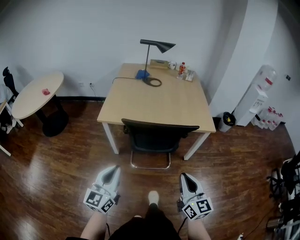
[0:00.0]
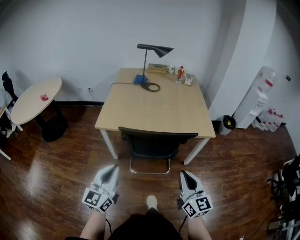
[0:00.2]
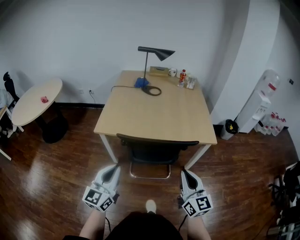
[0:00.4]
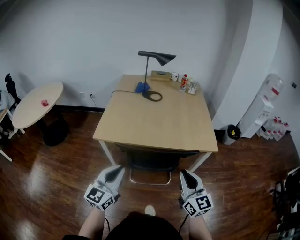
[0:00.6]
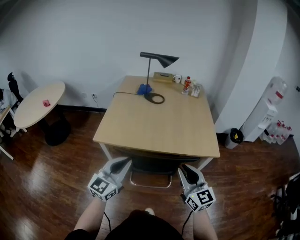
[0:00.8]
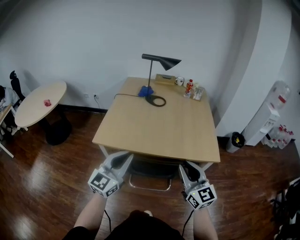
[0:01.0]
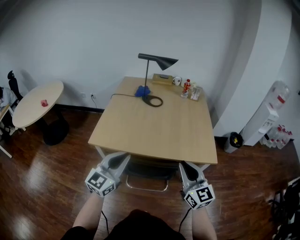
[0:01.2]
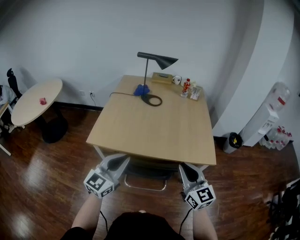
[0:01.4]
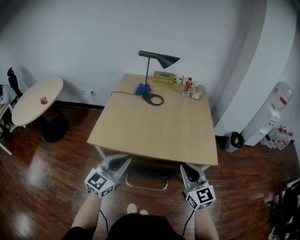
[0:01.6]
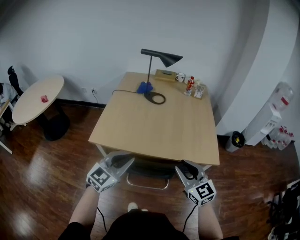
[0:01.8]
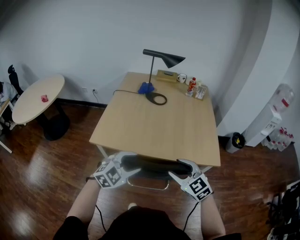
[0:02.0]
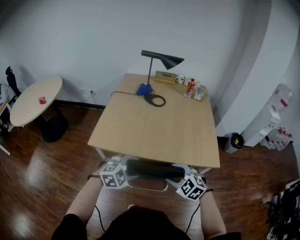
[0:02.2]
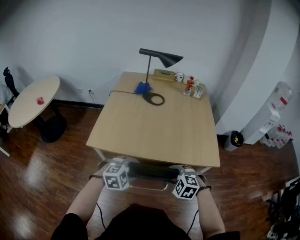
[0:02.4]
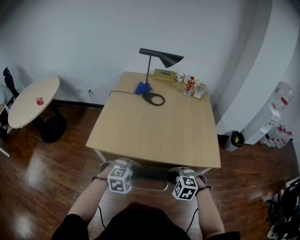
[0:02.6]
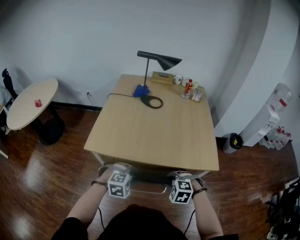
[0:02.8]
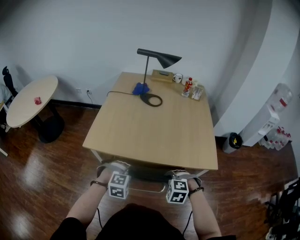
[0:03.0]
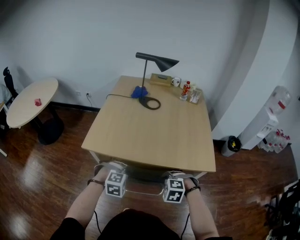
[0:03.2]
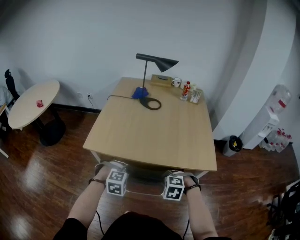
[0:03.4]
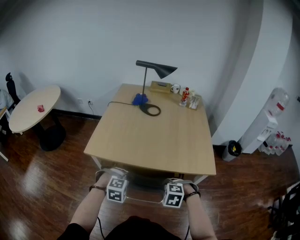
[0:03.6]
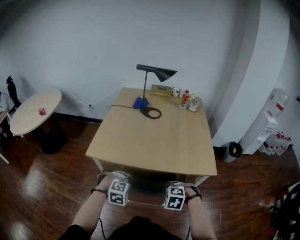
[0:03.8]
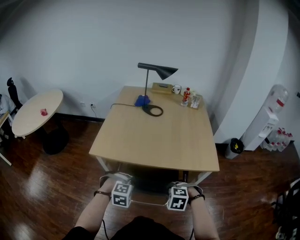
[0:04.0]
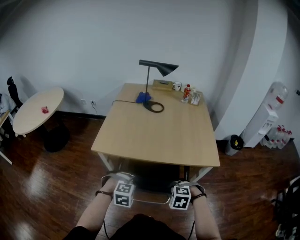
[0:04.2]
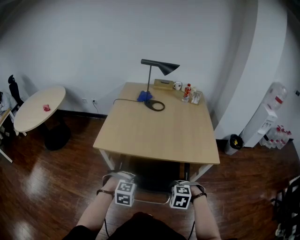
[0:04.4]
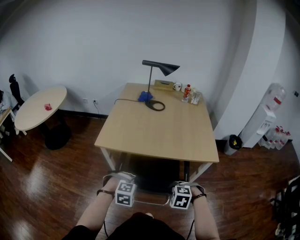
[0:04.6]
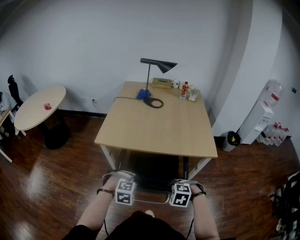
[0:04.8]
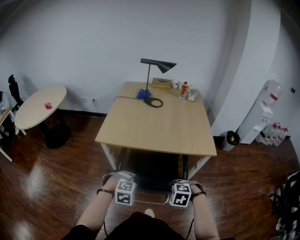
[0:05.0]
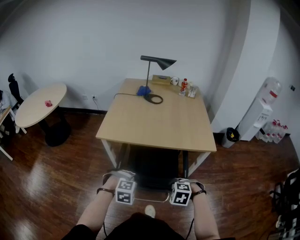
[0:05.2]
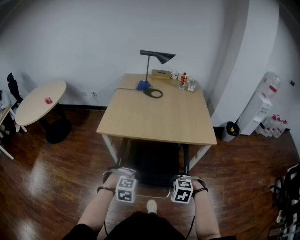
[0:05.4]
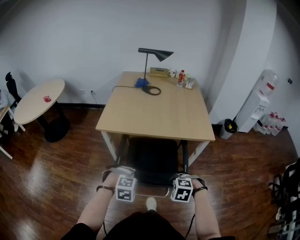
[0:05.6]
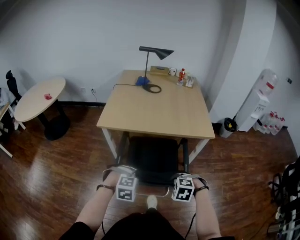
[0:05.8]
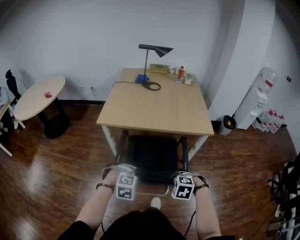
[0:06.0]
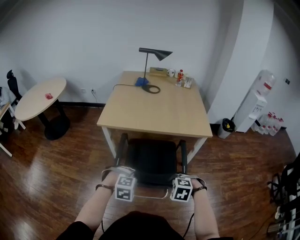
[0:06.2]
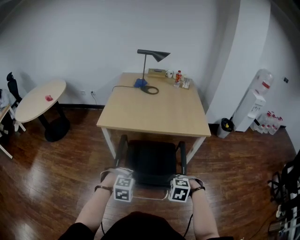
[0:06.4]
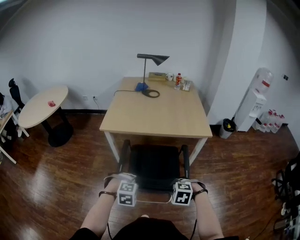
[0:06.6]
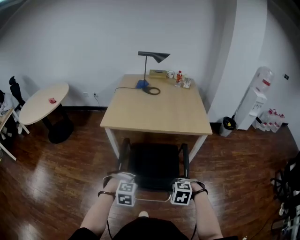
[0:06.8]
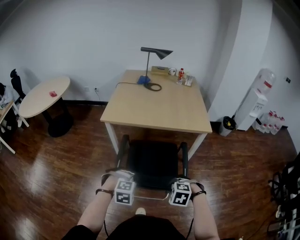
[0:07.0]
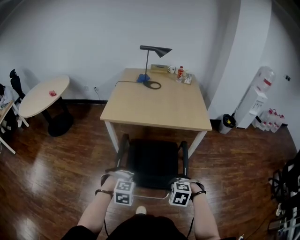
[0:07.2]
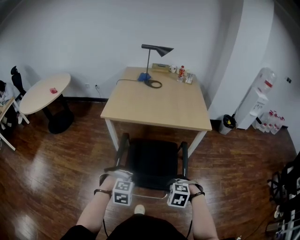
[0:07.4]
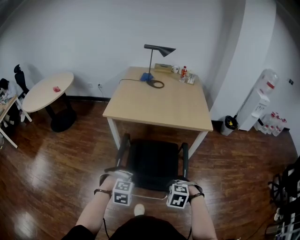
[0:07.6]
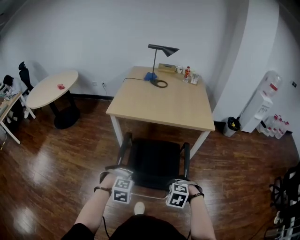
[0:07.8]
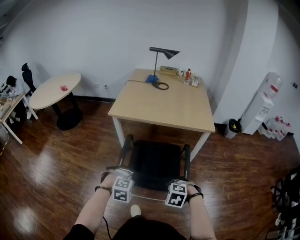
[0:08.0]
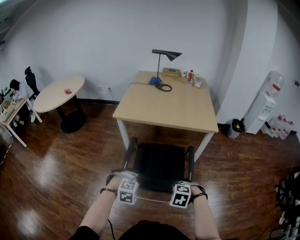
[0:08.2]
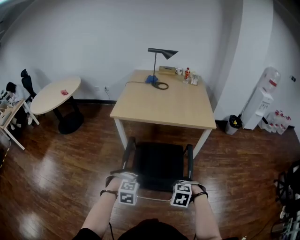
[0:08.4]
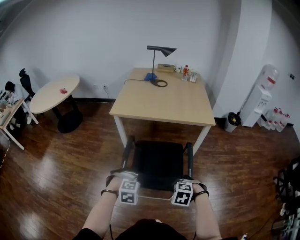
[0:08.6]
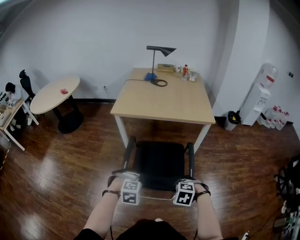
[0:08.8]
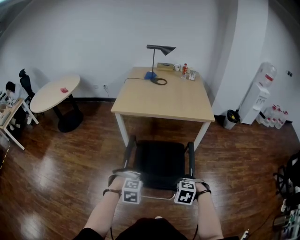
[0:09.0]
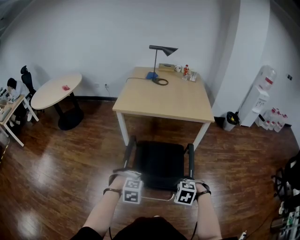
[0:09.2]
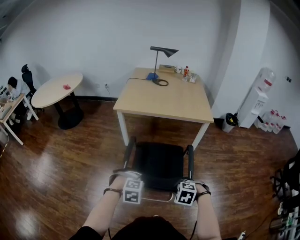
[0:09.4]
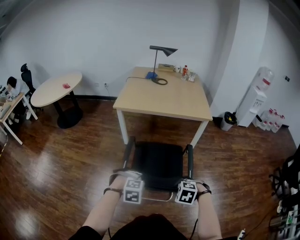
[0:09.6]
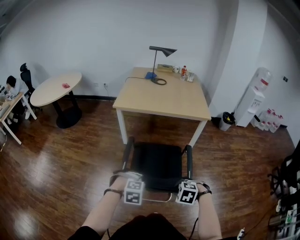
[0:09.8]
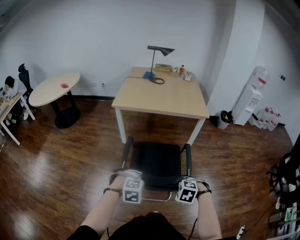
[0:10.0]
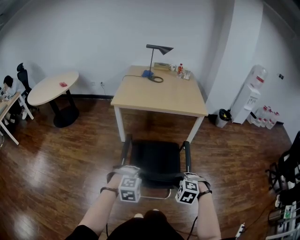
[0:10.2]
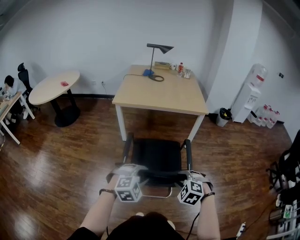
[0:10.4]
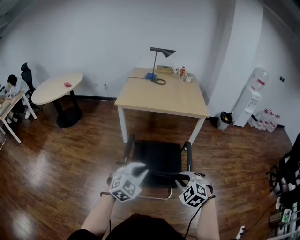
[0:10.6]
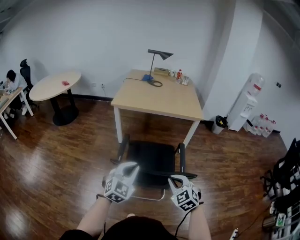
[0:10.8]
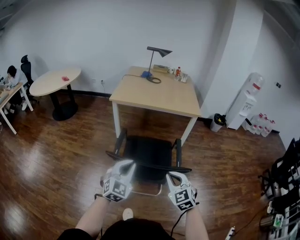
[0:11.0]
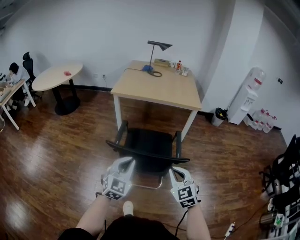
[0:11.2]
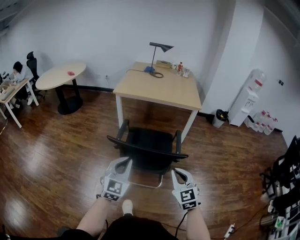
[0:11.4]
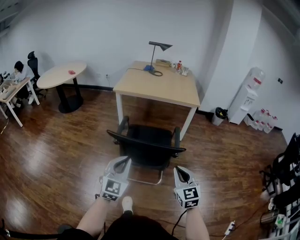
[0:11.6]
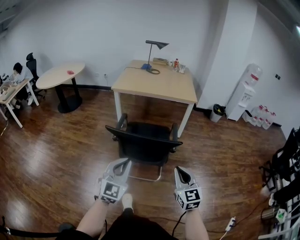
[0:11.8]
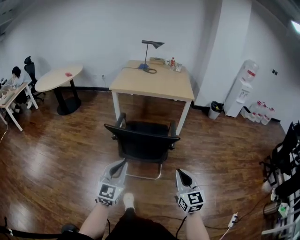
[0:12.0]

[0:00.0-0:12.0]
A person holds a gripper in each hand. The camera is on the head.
0:00.0 to 0:01.6: The left gripper travels forward and to the right by roughly 30 cm, while the right gripper goes roughly 25 cm forward.
0:01.6 to 0:03.0: The two grippers go roughly 20 cm downward. The right gripper angles its fingers downward, by approximately 60 degrees, and opens, then closes once more. Meanwhile the left gripper points its fingers approximately 60 degrees further downward, and opens, then closes again.
0:03.0 to 0:04.4: Both grippers move backward, about 10 cm.
0:04.4 to 0:06.0: Both grippers move backward, about 15 cm.
0:06.0 to 0:07.6: The left gripper moves about 10 cm. The right gripper changes place by roughly 10 cm.
0:07.6 to 0:09.0: The left gripper ends up approximately 10 cm from where it was. Meanwhile the right gripper moves approximately 10 cm.
0:09.0 to 0:10.4: The right gripper shifts by about 10 cm, and turns by some 20 degrees. Meanwhile the left gripper moves roughly 10 cm, and changes its angle by about 20 degrees.
0:10.4 to 0:12.0: The right gripper shifts about 25 cm backward, to the right and upward, tilts its fingers some 50 degrees upward, and closes its fingers. The left gripper is displaced backward by approximately 20 cm, points its fingers about 40 degrees further upward, and closes its fingers.

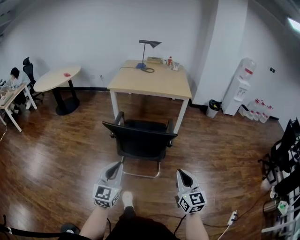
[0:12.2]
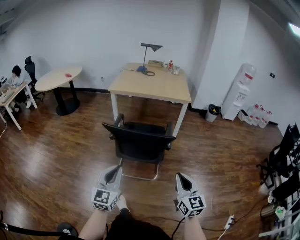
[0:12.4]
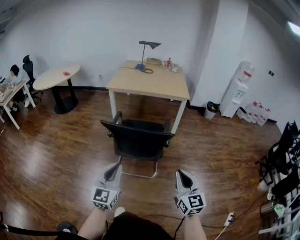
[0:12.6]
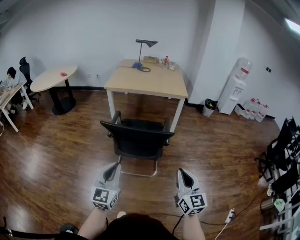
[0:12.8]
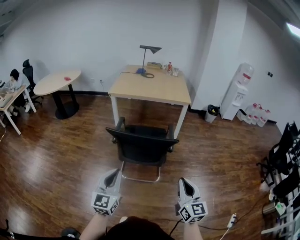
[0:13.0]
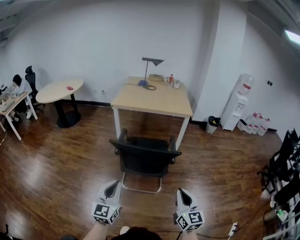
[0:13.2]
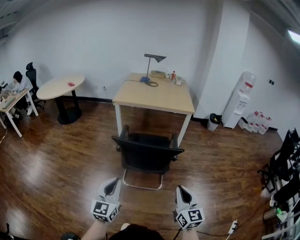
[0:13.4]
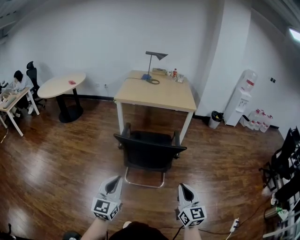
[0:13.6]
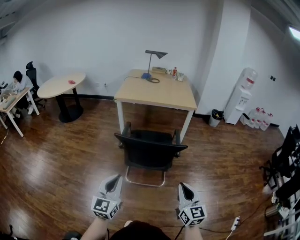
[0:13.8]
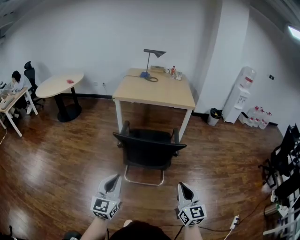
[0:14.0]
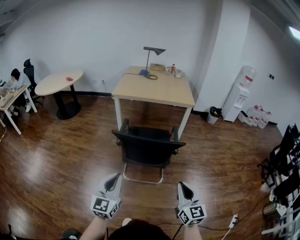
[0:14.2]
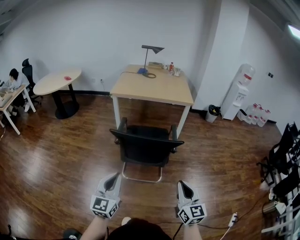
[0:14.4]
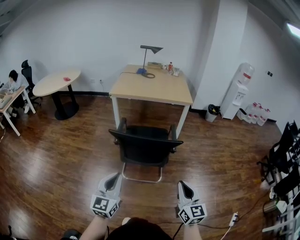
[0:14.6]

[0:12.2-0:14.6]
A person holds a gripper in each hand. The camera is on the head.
0:12.2 to 0:13.4: Both grippers move to the left, about 5 cm.
0:13.4 to 0:14.6: The grippers move only a little.

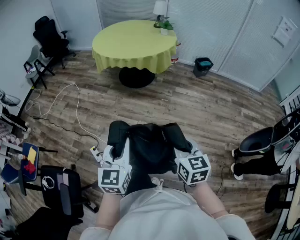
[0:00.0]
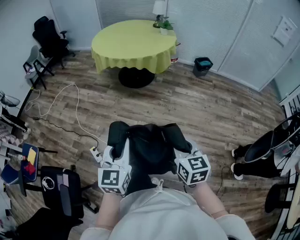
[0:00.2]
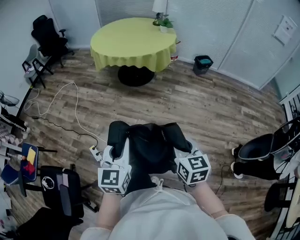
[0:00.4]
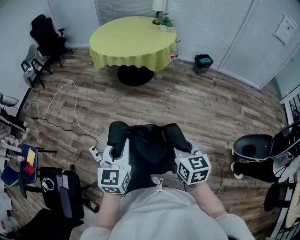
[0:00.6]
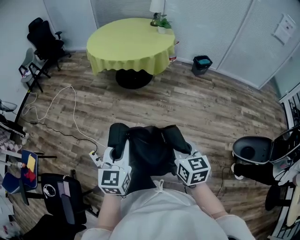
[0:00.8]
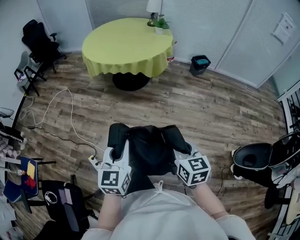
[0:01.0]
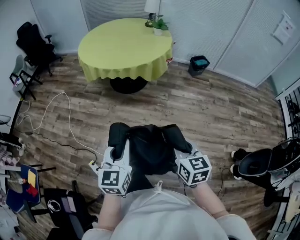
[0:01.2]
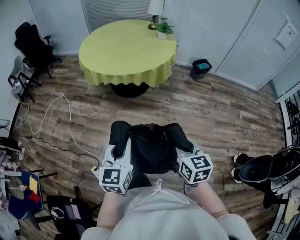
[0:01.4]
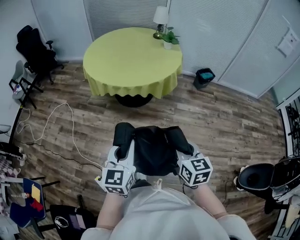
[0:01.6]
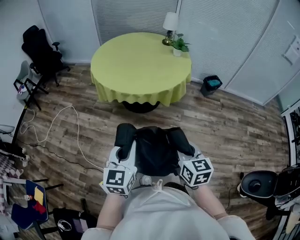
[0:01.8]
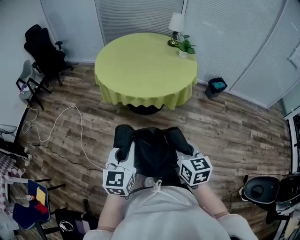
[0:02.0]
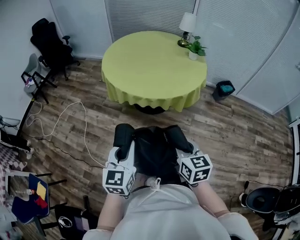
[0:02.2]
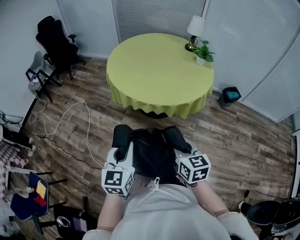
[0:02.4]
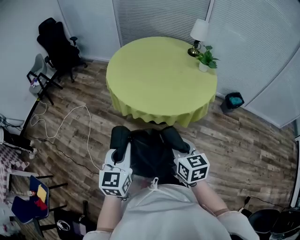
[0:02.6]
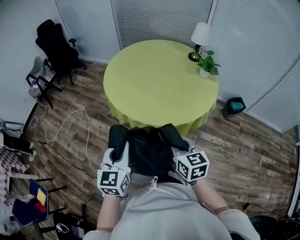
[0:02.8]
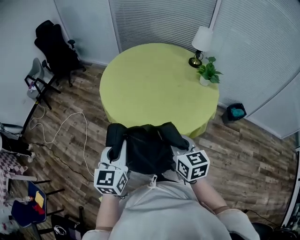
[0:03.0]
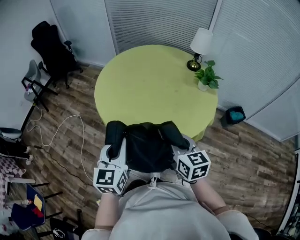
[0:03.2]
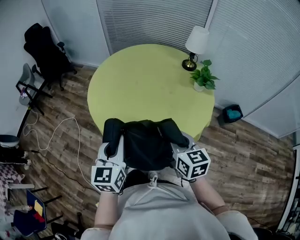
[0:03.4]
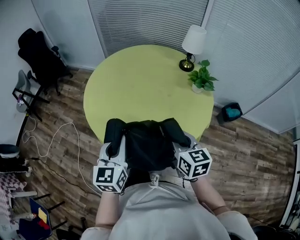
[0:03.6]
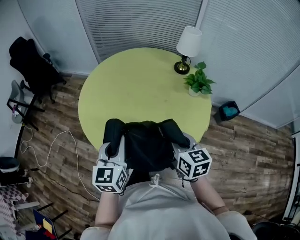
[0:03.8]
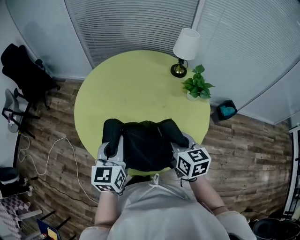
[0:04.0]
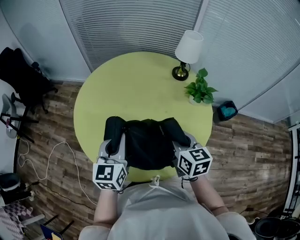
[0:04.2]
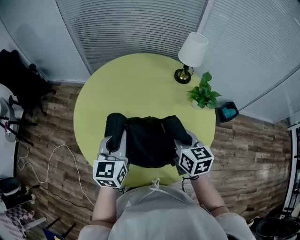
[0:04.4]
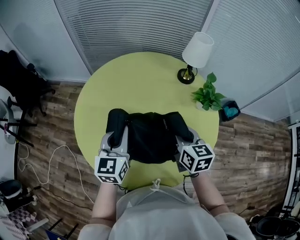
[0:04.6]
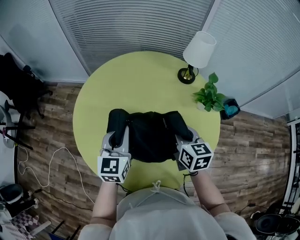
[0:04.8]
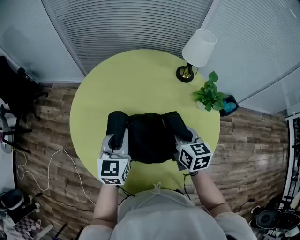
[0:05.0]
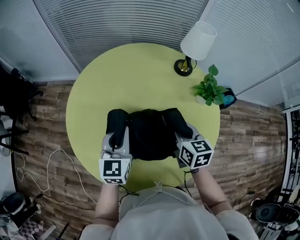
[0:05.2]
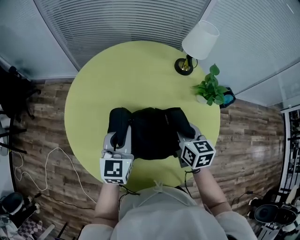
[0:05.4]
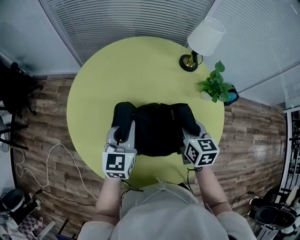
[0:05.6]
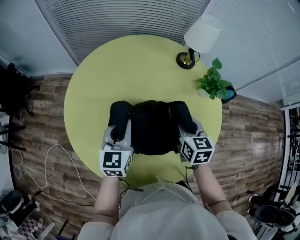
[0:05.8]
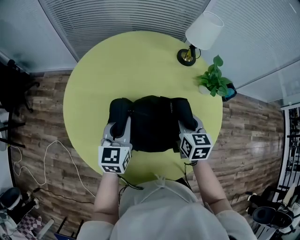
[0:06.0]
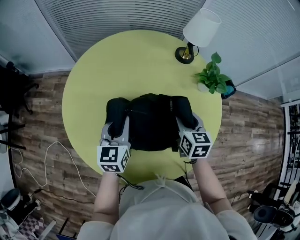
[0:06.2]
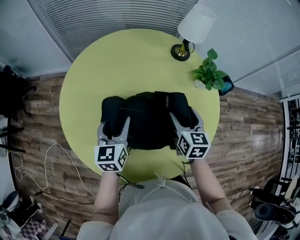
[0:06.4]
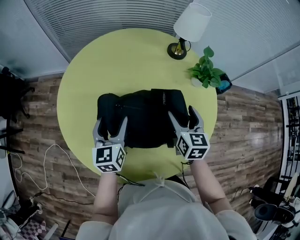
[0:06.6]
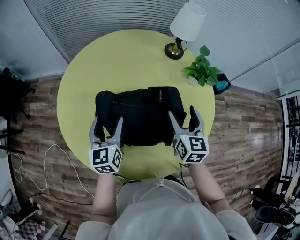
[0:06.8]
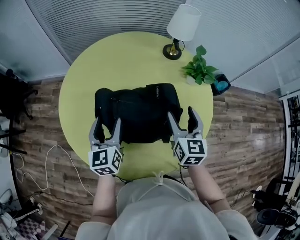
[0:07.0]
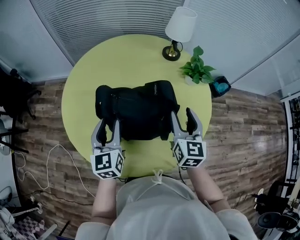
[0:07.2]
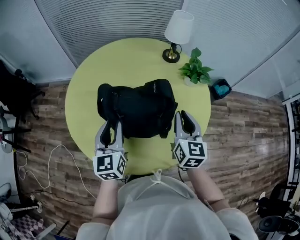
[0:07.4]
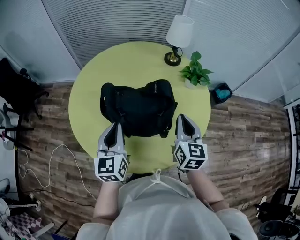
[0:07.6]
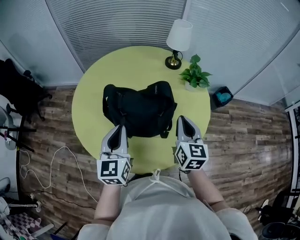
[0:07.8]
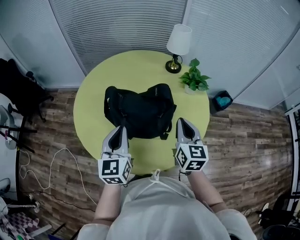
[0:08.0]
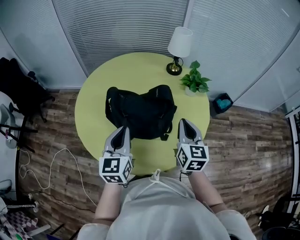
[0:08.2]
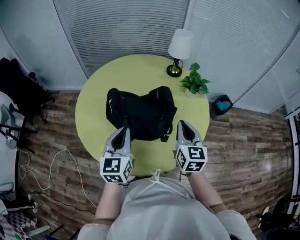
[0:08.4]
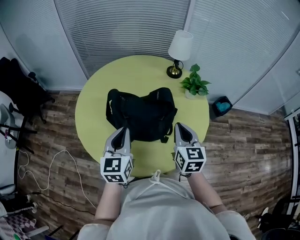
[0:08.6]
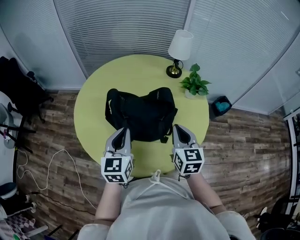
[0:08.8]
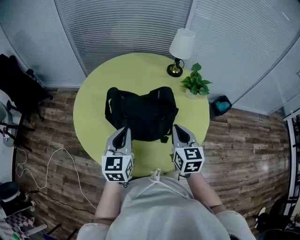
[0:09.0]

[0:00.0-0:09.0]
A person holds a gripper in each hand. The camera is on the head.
0:00.0 to 0:01.6: The two grippers go some 35 cm forward.
0:01.6 to 0:03.0: Both grippers move forward, about 40 cm.
0:03.0 to 0:04.4: The two grippers go approximately 40 cm forward.
0:04.4 to 0:06.0: The two grippers go about 15 cm downward and forward.
0:06.0 to 0:07.6: The left gripper heads backward and upward, covering roughly 20 cm, and opens, then closes again. Meanwhile the right gripper travels backward, upward and to the right by approximately 20 cm, and opens, then closes again.
0:07.6 to 0:09.0: The grippers make only small movements.
